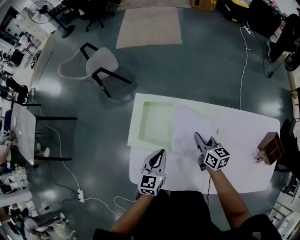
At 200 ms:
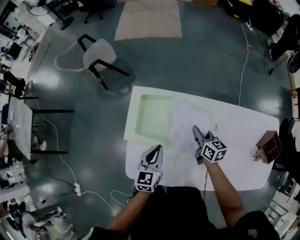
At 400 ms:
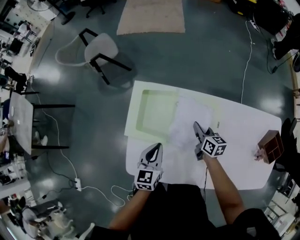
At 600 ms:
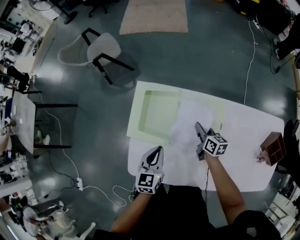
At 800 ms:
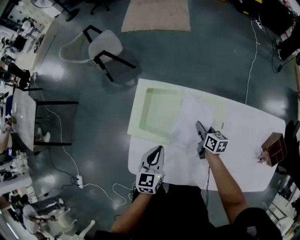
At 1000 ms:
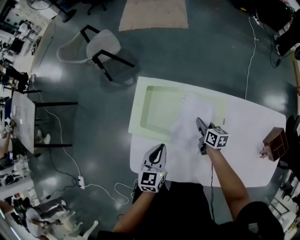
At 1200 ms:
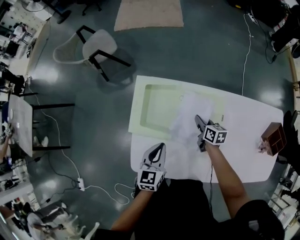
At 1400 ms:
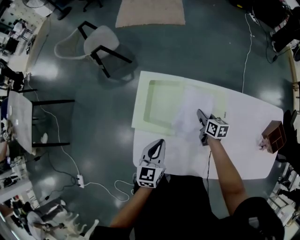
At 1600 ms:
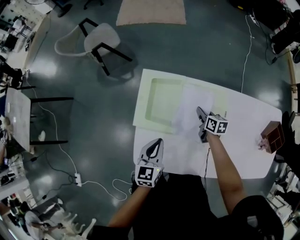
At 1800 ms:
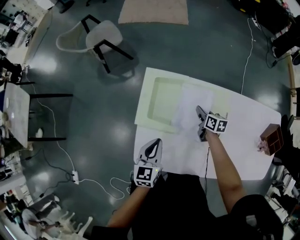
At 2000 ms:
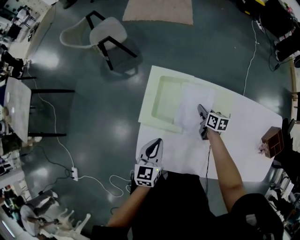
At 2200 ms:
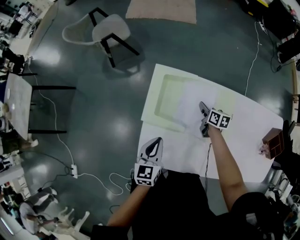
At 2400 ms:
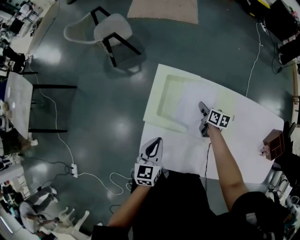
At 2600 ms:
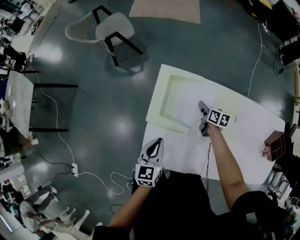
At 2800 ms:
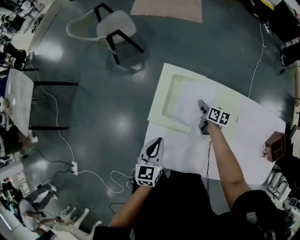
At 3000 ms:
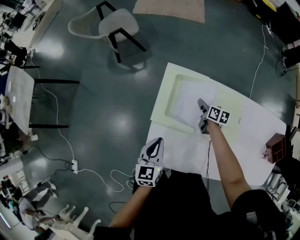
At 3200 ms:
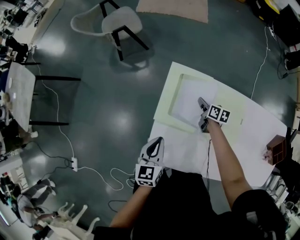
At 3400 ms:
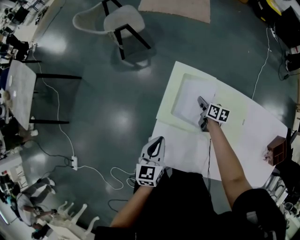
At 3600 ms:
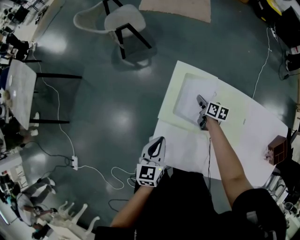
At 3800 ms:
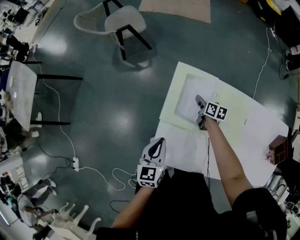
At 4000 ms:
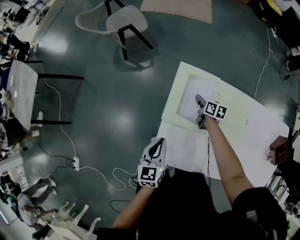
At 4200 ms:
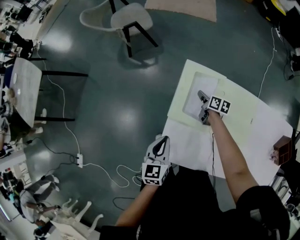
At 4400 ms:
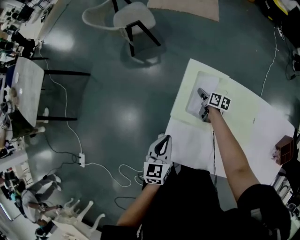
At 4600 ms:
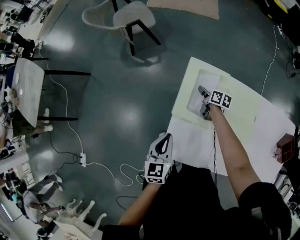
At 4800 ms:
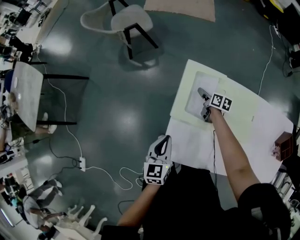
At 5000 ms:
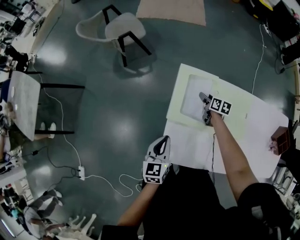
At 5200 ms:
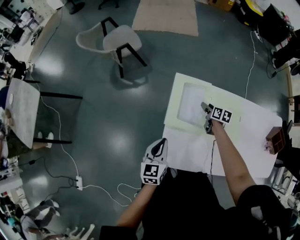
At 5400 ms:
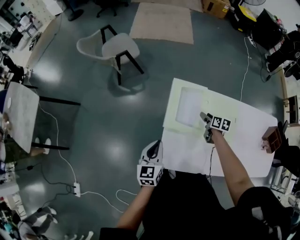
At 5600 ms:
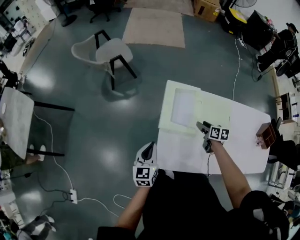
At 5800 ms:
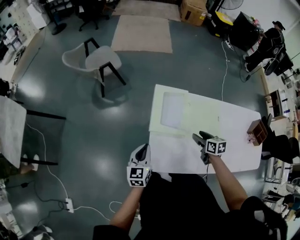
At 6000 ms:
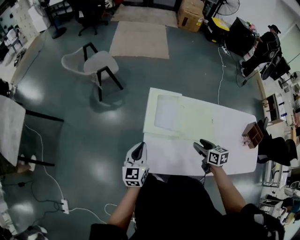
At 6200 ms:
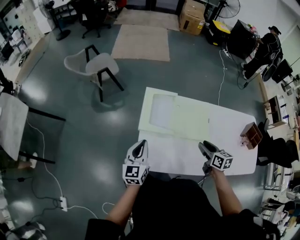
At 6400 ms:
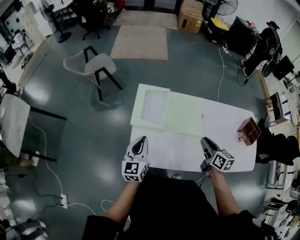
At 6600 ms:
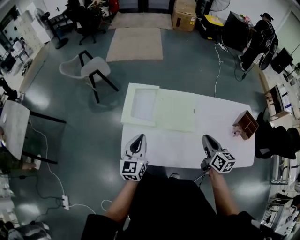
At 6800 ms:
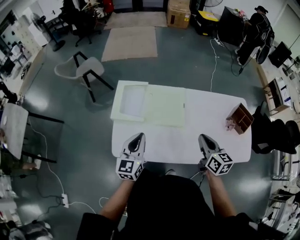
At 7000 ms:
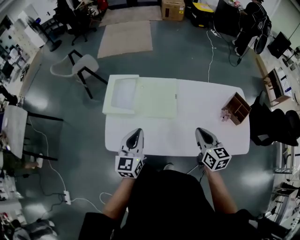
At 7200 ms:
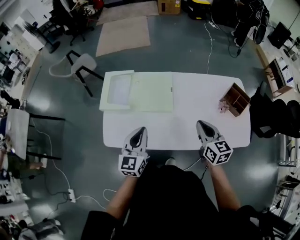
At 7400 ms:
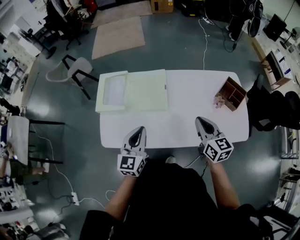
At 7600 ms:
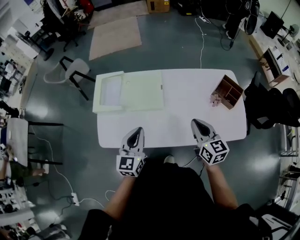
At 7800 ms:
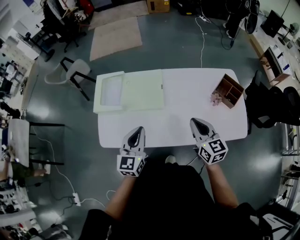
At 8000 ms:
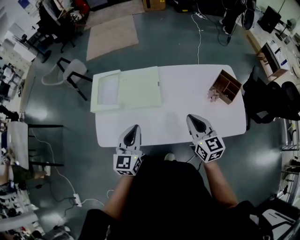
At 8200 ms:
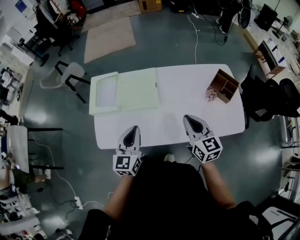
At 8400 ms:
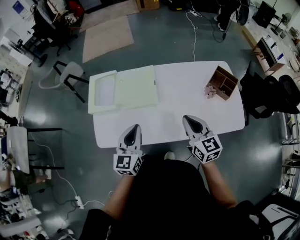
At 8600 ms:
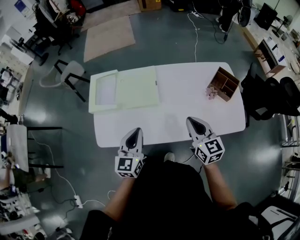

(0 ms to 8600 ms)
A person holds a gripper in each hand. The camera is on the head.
0 ms - 1400 ms: The right gripper goes some 10 cm downward, while the left gripper moves roughly 5 cm.
1400 ms - 2800 ms: The right gripper moves to the left and forward, roughly 10 cm. Meanwhile the left gripper moves to the left, approximately 10 cm.
2800 ms - 4400 ms: The right gripper heads to the left and forward, covering approximately 15 cm; the left gripper goes some 10 cm to the left.
4400 ms - 5800 ms: The right gripper moves backward and upward, some 30 cm, turns by roughly 20 degrees, and opens, while the left gripper ends up some 5 cm from where it was.
5800 ms - 7200 ms: The left gripper is displaced to the right by approximately 40 cm; the right gripper heads to the right, backward and upward, covering some 40 cm, rotates approximately 30 degrees, and closes.
7200 ms - 8600 ms: The right gripper shifts by roughly 5 cm. Meanwhile the left gripper goes roughly 5 cm to the right.

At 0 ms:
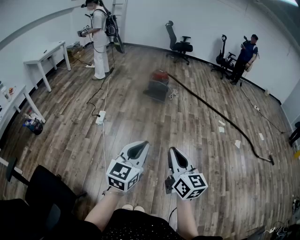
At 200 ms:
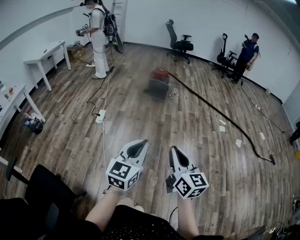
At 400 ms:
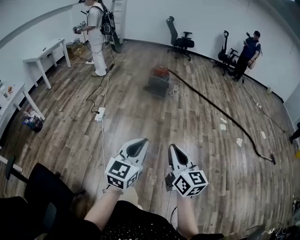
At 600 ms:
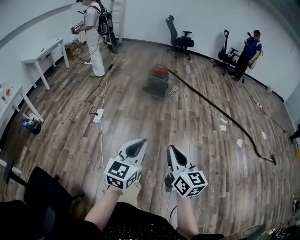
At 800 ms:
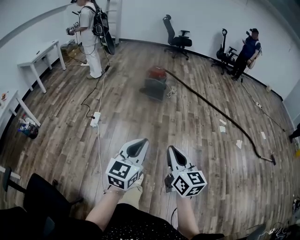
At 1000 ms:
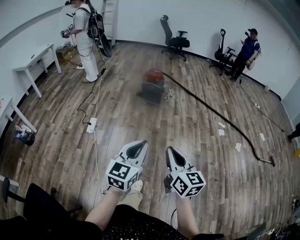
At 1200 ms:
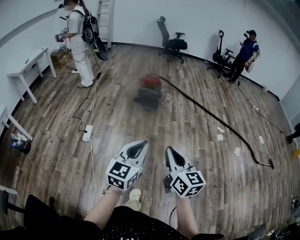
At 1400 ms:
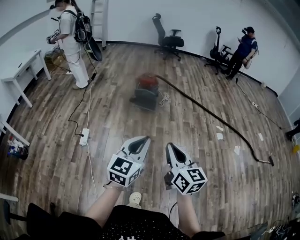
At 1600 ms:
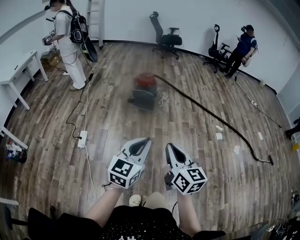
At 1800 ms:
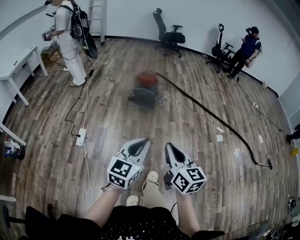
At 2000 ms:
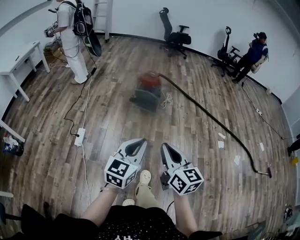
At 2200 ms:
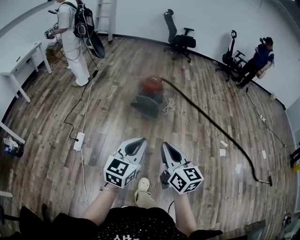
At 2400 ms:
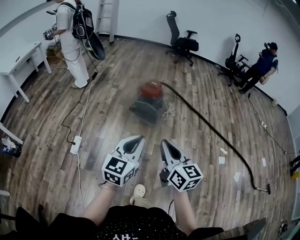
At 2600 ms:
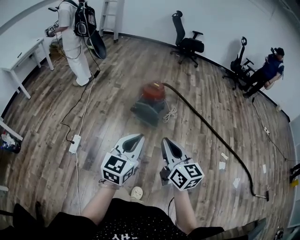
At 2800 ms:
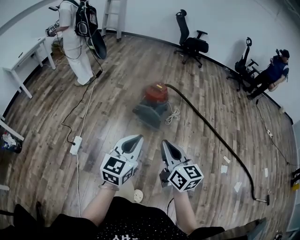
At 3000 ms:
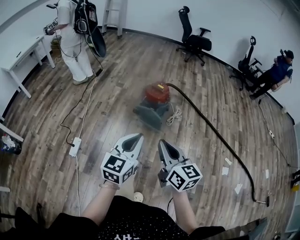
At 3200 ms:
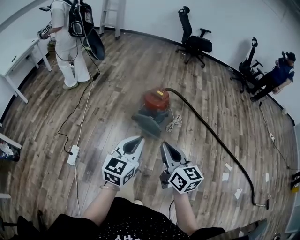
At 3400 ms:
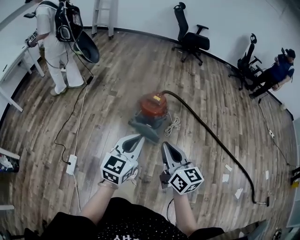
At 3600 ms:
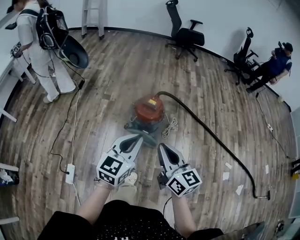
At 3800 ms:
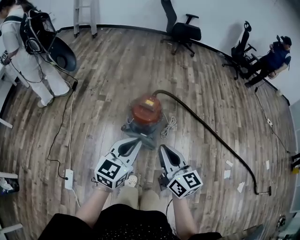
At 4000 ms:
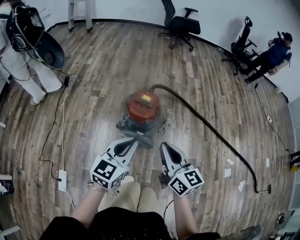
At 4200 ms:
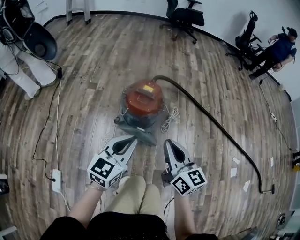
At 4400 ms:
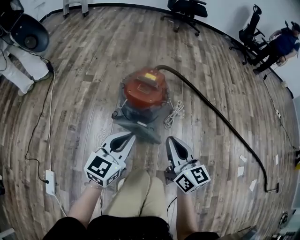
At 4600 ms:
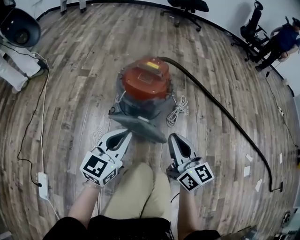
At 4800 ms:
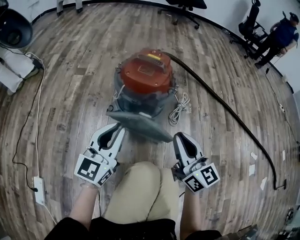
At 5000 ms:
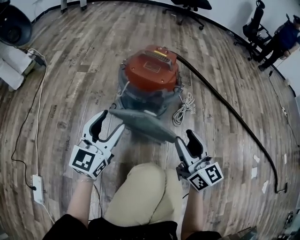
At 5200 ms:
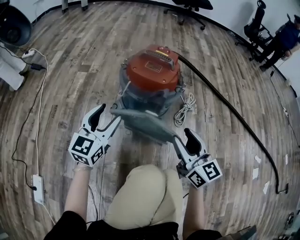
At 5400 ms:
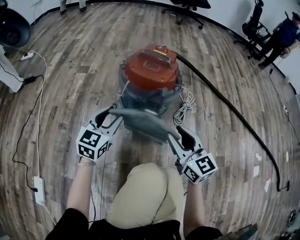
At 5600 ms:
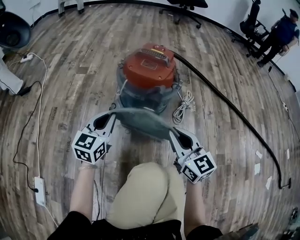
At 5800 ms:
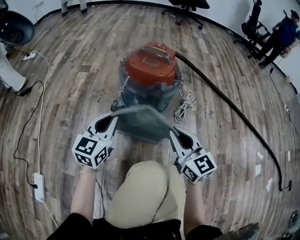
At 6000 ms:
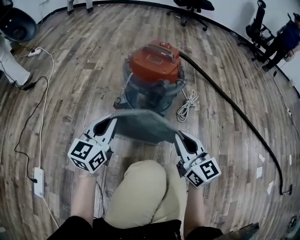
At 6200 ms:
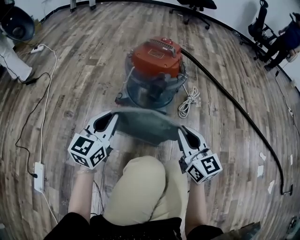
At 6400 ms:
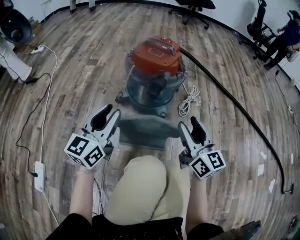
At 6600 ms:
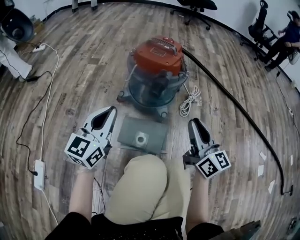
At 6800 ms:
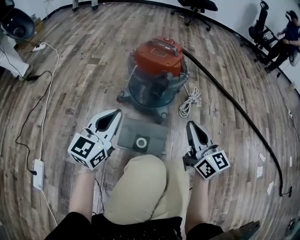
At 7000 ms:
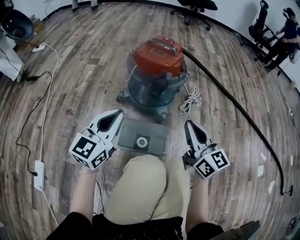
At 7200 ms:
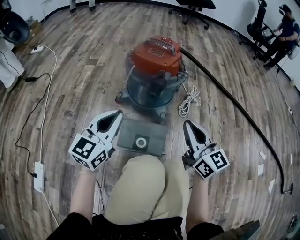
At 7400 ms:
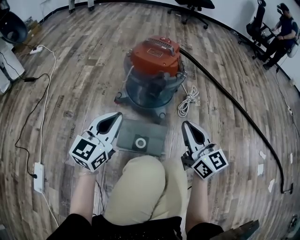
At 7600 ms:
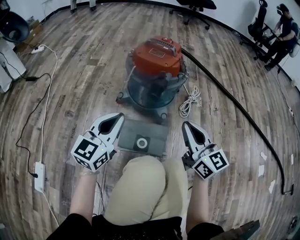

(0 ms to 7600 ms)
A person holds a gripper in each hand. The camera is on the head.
0 ms - 1600 ms: Both grippers are carried forward, about 40 cm.
1600 ms - 3000 ms: The two grippers travel together, forward, approximately 40 cm.
3000 ms - 4600 ms: The pair of grippers is taken forward, roughly 40 cm. The grippers both shift downward by about 40 cm.
4600 ms - 6000 ms: The right gripper moves downward, roughly 10 cm, and opens, then closes again. The left gripper is displaced downward and to the left by approximately 10 cm, and opens, then closes once more.
6000 ms - 7600 ms: The left gripper opens and closes again. Meanwhile the right gripper opens and closes again.

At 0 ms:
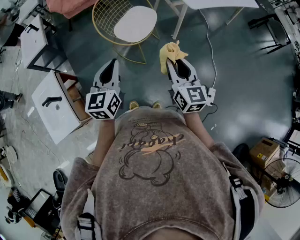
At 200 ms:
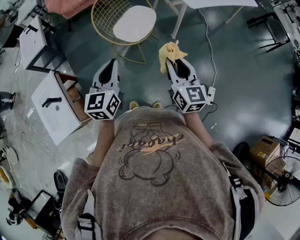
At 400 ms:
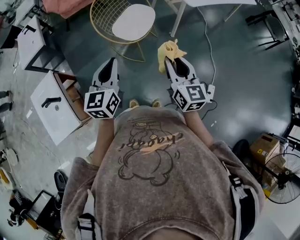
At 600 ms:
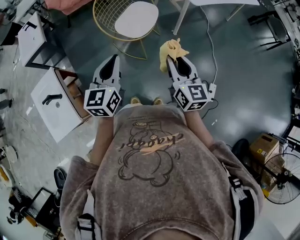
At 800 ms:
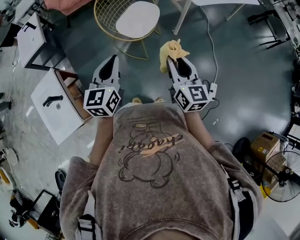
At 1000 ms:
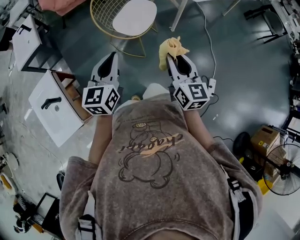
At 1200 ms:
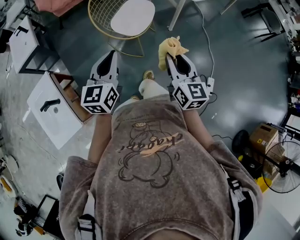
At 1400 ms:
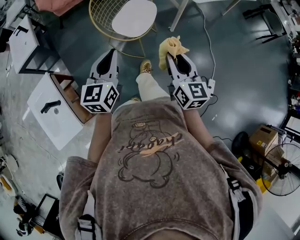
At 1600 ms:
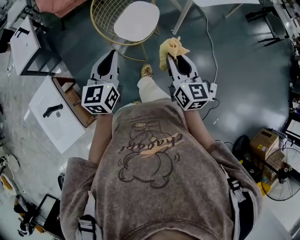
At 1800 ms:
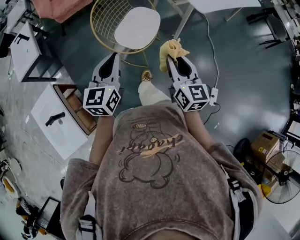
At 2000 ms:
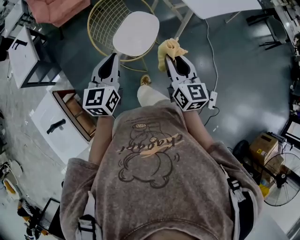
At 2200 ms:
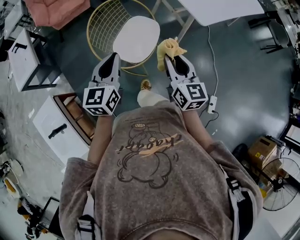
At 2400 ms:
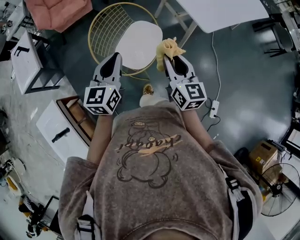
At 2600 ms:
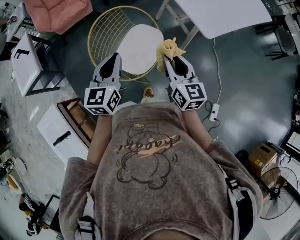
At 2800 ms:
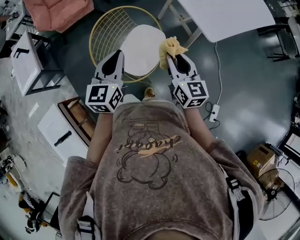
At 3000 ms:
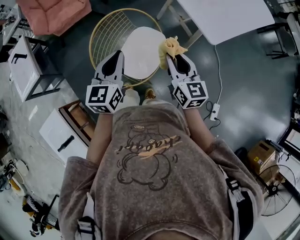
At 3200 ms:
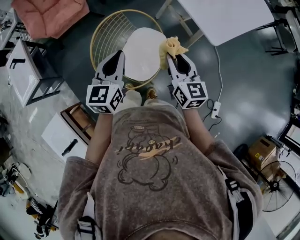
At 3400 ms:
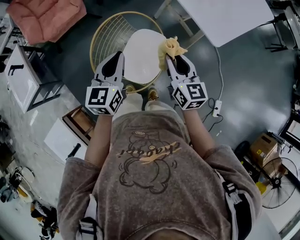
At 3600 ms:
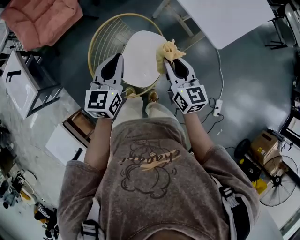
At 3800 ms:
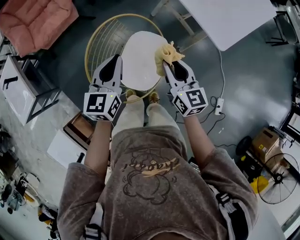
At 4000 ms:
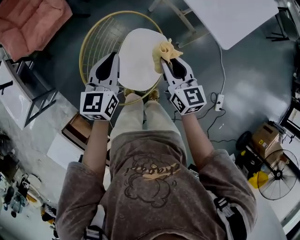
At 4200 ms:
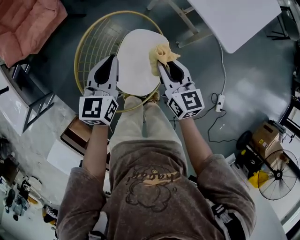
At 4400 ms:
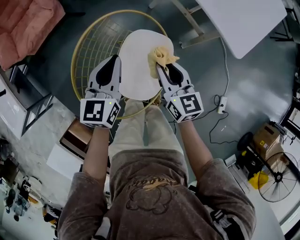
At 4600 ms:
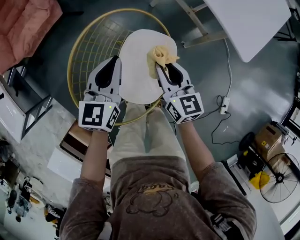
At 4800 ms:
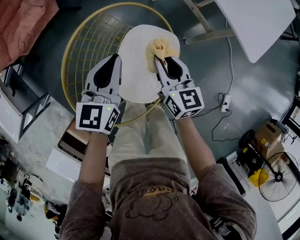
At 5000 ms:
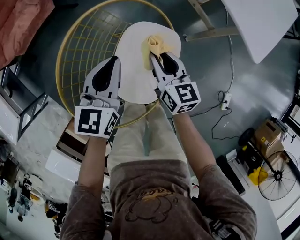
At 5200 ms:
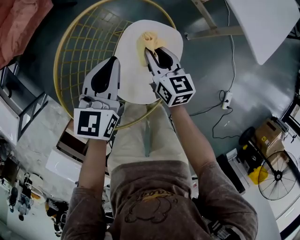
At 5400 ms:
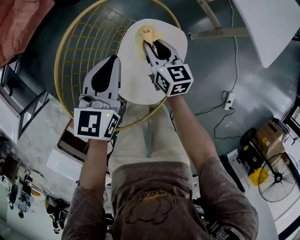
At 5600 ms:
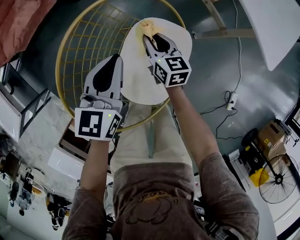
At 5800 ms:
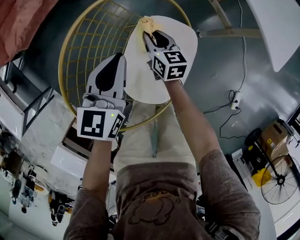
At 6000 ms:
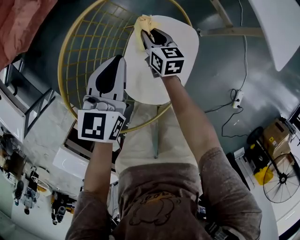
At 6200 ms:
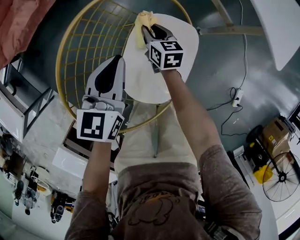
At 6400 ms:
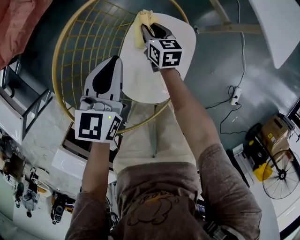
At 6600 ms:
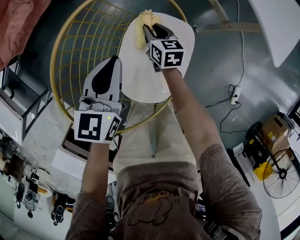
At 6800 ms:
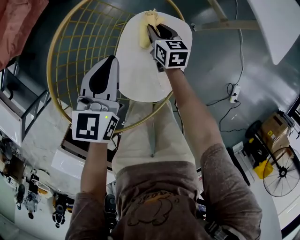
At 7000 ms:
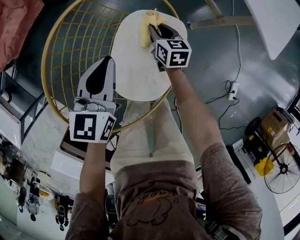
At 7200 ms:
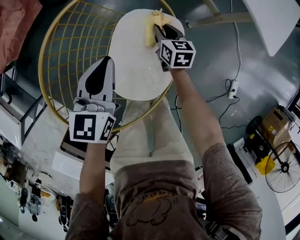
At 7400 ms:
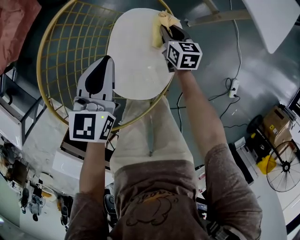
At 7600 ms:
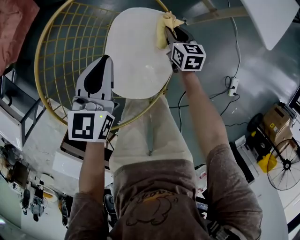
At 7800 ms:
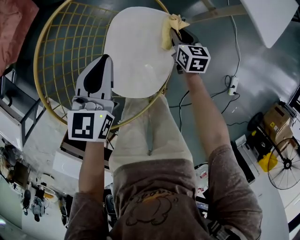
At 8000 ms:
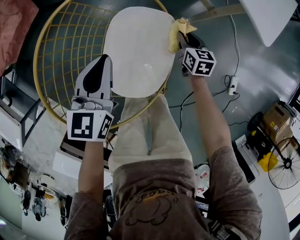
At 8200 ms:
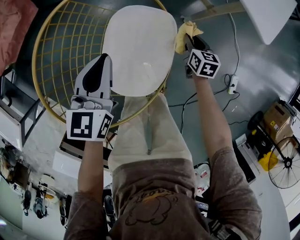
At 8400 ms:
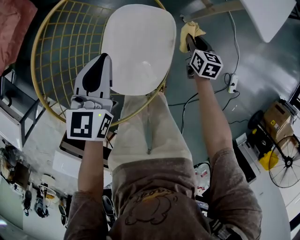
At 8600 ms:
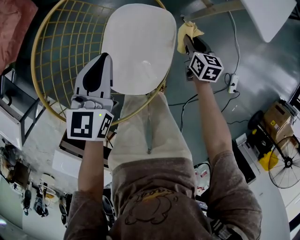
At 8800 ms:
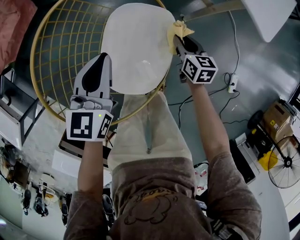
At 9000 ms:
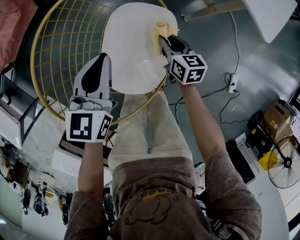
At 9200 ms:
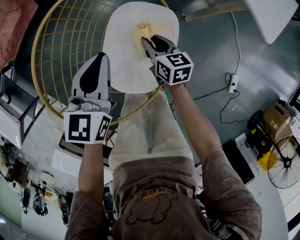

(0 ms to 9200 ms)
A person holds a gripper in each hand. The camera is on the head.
0 ms - 1600 ms: Both grippers travel together forward and to the left, about 10 cm.
1600 ms - 3000 ms: Both grippers move forward, approximately 30 cm.
3000 ms - 4600 ms: Both grippers travel together downward and forward, about 25 cm.
4600 ms - 6200 ms: The right gripper shifts some 25 cm downward and forward, while the left gripper goes approximately 10 cm downward.
6200 ms - 7600 ms: The right gripper moves to the right, approximately 15 cm.
7600 ms - 9200 ms: The right gripper travels to the left and backward by some 10 cm.
